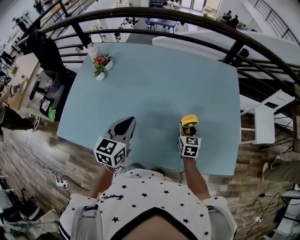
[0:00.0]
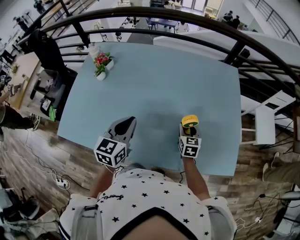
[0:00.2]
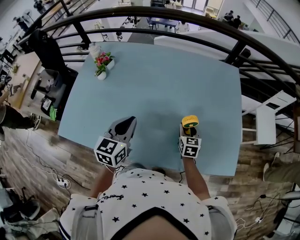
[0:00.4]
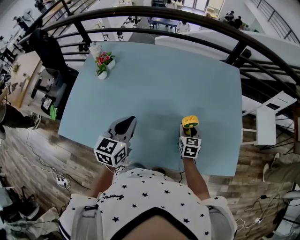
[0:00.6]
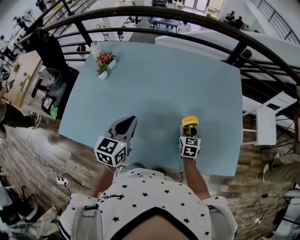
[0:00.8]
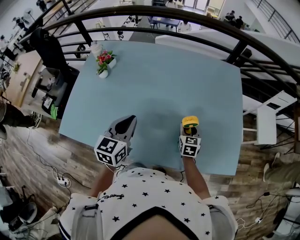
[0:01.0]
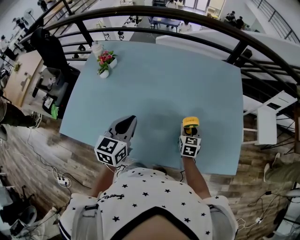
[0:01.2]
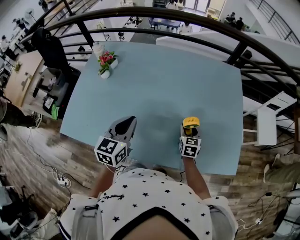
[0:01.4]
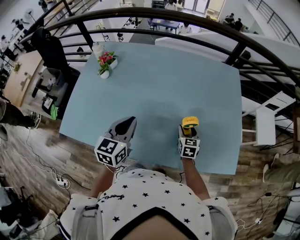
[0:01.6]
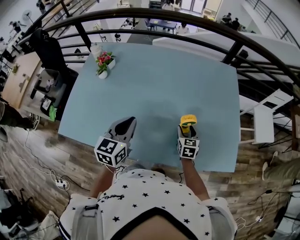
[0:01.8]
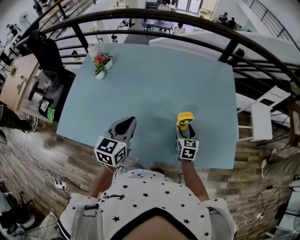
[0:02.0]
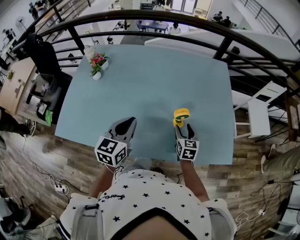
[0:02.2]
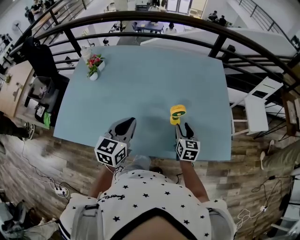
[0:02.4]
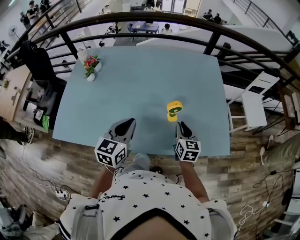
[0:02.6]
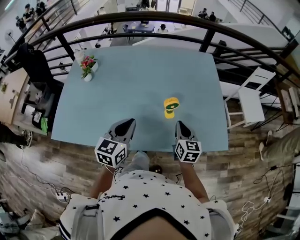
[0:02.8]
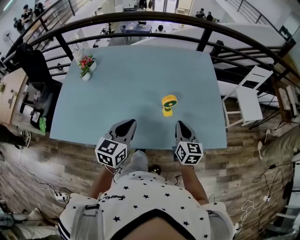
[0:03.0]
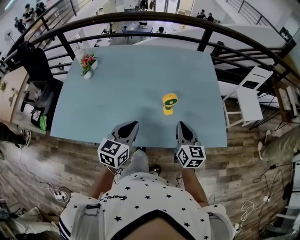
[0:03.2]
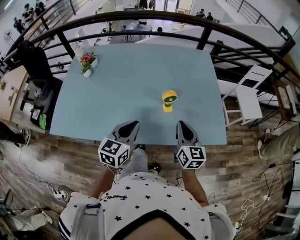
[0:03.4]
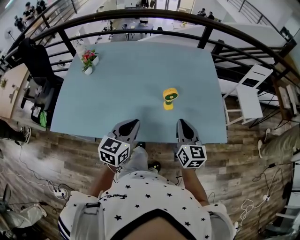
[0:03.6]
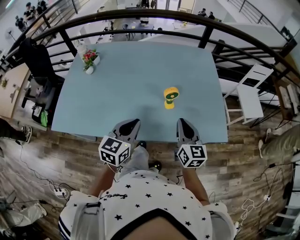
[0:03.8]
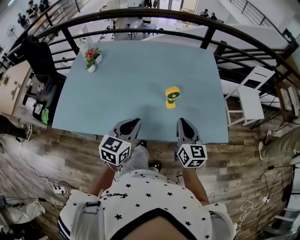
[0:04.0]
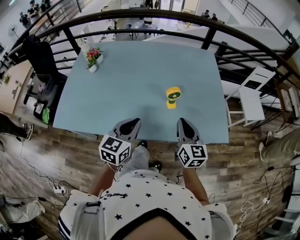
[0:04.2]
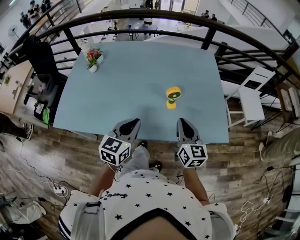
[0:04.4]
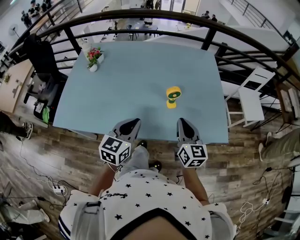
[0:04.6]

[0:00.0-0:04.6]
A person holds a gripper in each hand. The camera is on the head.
0.0 to 1.6 s: The grippers make only small movements.
1.6 to 3.0 s: The left gripper goes some 10 cm to the right and backward, while the right gripper heads upward, backward and to the right, covering some 20 cm, swivels some 20 degrees, and closes.
3.0 to 4.6 s: The right gripper heads backward and upward, covering about 10 cm. The left gripper travels backward by some 5 cm.

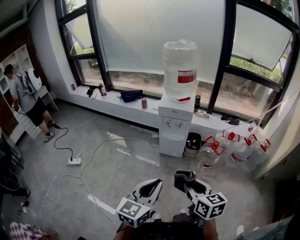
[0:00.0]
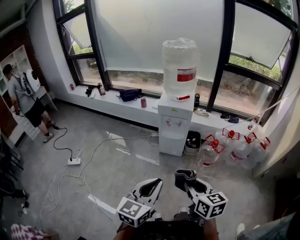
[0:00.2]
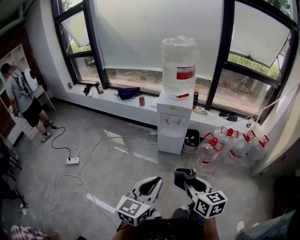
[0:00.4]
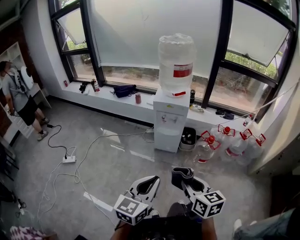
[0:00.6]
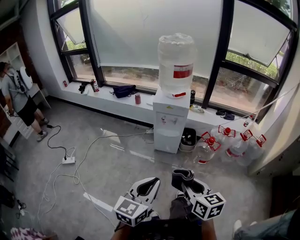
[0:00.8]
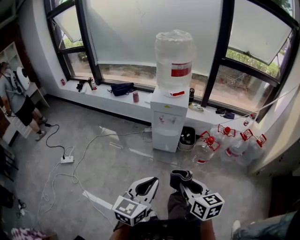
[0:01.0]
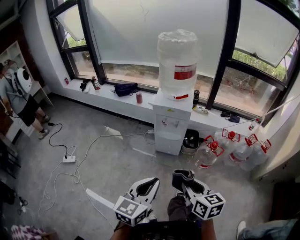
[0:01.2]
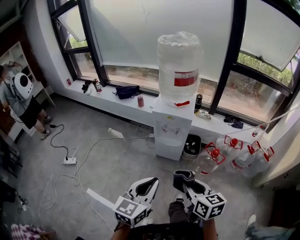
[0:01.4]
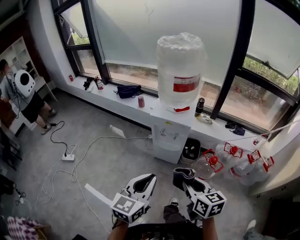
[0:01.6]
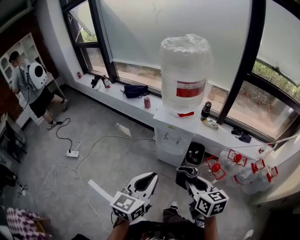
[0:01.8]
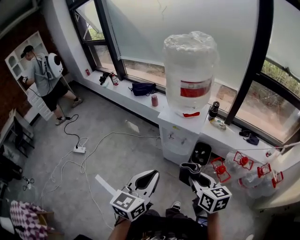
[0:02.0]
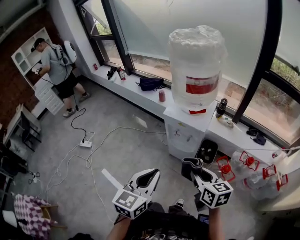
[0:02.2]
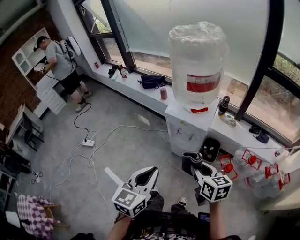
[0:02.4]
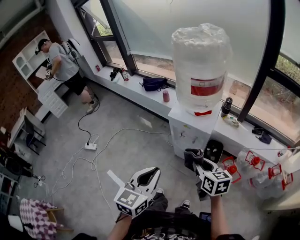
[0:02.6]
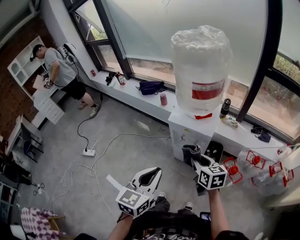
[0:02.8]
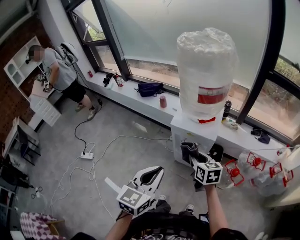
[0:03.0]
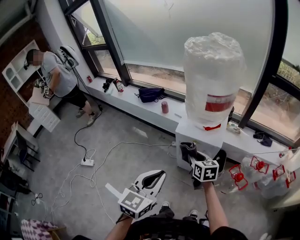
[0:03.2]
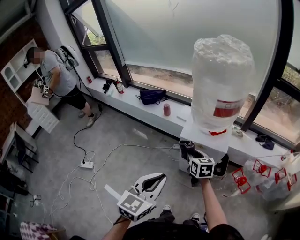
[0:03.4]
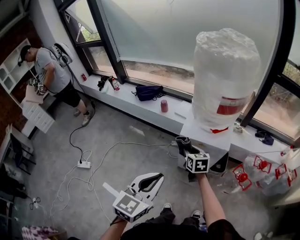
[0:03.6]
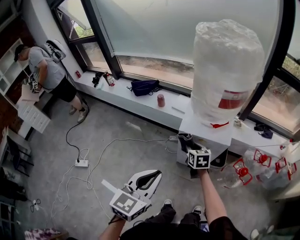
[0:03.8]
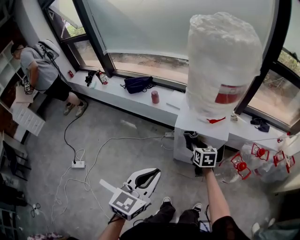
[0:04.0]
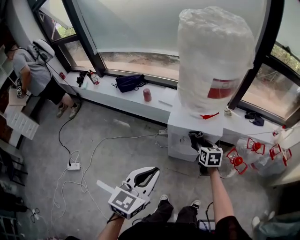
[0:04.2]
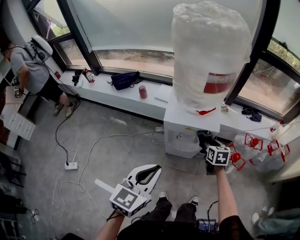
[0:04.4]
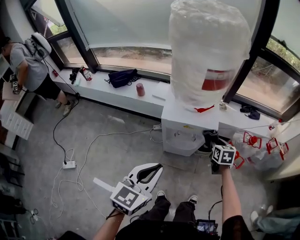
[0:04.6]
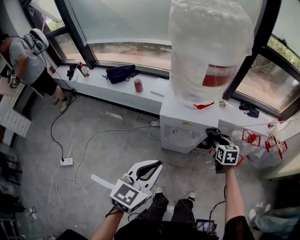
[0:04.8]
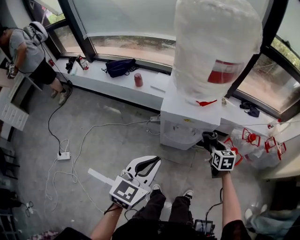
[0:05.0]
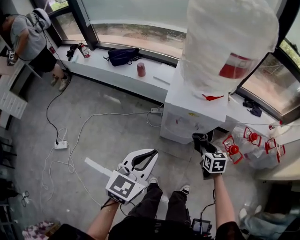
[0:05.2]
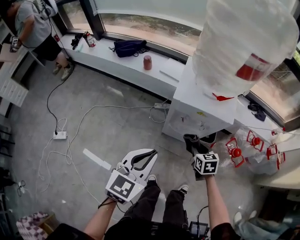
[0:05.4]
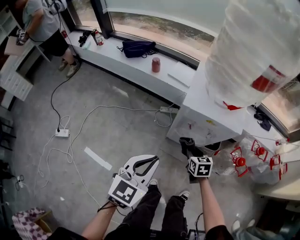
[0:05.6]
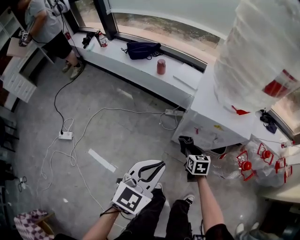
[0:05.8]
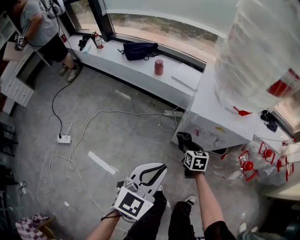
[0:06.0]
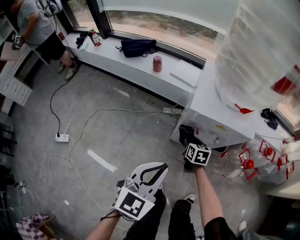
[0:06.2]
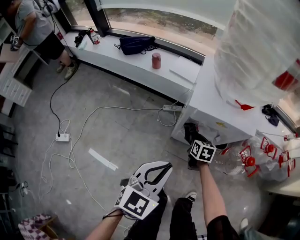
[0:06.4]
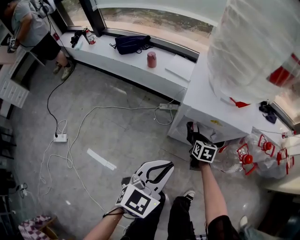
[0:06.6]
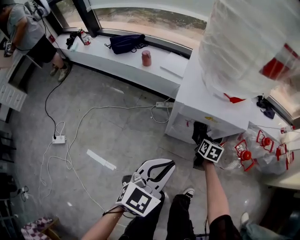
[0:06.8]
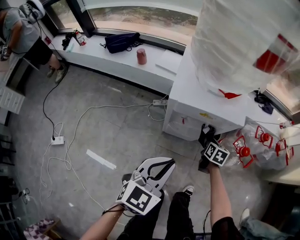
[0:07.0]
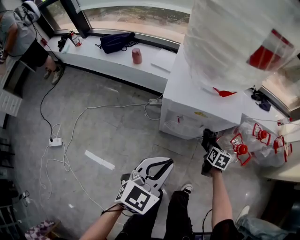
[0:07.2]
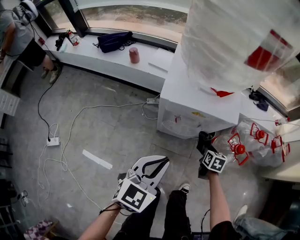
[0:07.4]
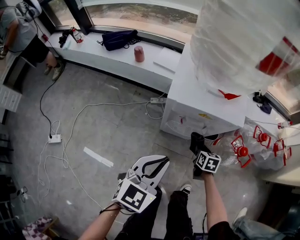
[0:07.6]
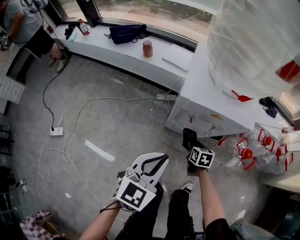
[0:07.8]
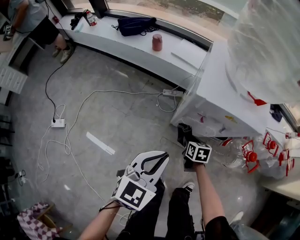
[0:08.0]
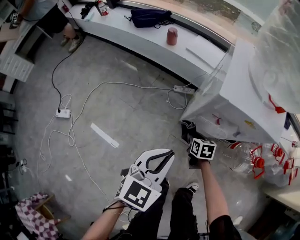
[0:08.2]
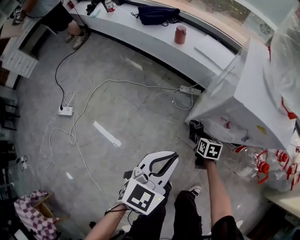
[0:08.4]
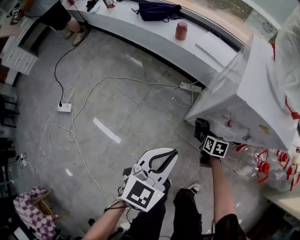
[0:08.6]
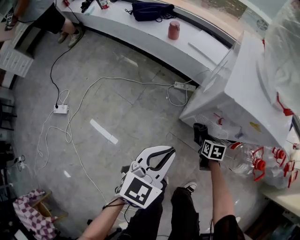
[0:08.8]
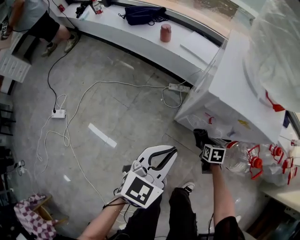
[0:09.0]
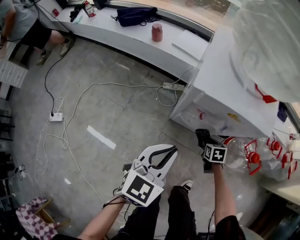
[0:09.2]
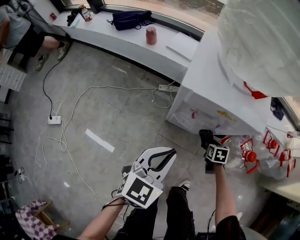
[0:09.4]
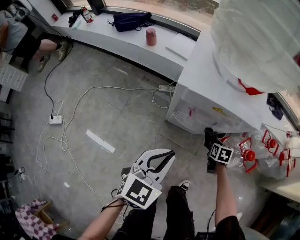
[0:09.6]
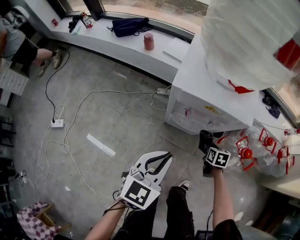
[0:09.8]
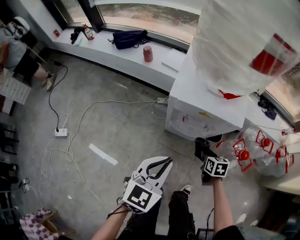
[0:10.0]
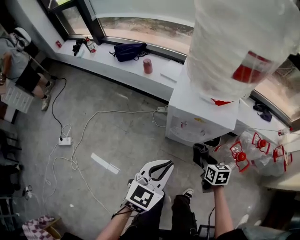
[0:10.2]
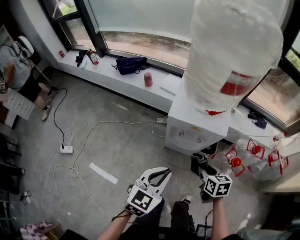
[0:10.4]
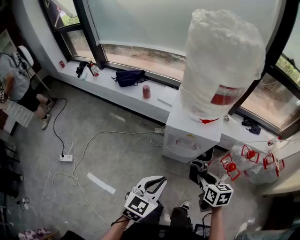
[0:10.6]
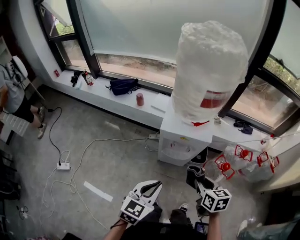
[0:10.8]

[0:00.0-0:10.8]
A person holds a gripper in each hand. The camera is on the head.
0.0 to 1.6 s: Both grippers move forward, approximately 25 cm.
1.6 to 3.0 s: The right gripper shifts roughly 25 cm forward. Meanwhile the left gripper moves forward, approximately 15 cm.
3.0 to 4.6 s: The left gripper ends up roughly 10 cm from where it was, while the right gripper moves roughly 20 cm, and swivels roughly 30 degrees.
4.6 to 6.2 s: The right gripper travels to the left and downward by approximately 30 cm. Meanwhile the left gripper moves downward and to the left, about 15 cm.
6.2 to 7.8 s: The right gripper shifts roughly 10 cm to the right and downward.
7.8 to 9.2 s: The left gripper travels downward by roughly 5 cm, and travels to the left and back again, some 10 cm each way; the right gripper moves downward and to the right, approximately 10 cm.
9.2 to 10.8 s: The left gripper heads upward and backward, covering approximately 25 cm; the right gripper heads upward, covering some 50 cm, and rotates roughly 30 degrees.

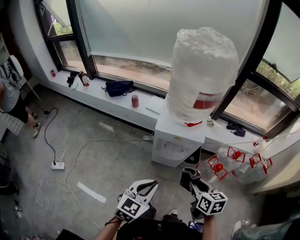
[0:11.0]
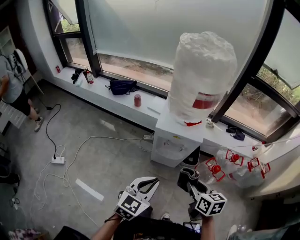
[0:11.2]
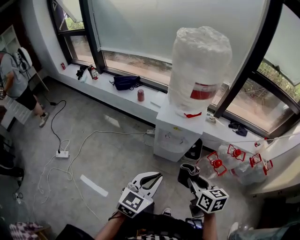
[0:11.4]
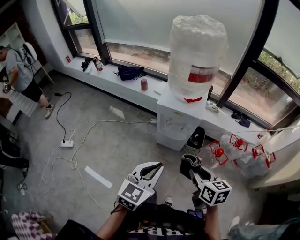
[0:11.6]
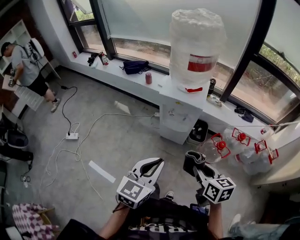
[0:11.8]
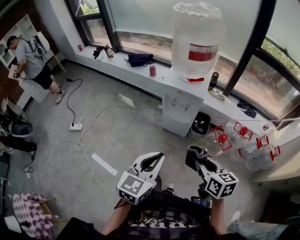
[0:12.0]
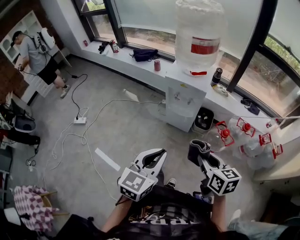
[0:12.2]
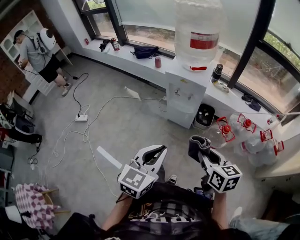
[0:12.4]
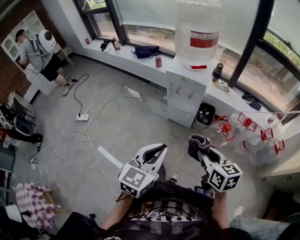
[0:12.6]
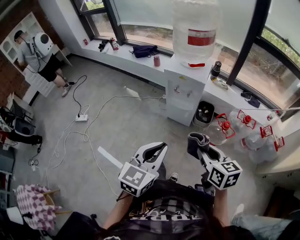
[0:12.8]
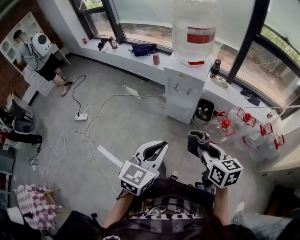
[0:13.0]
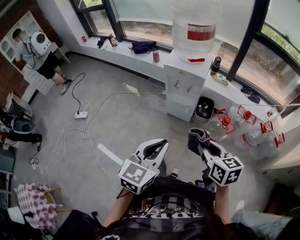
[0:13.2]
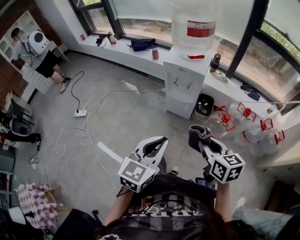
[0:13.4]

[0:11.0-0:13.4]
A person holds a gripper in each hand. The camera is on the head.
11.0 to 12.2 s: The two grippers go roughly 25 cm backward and to the right.
12.2 to 13.4 s: The grippers stay close to where they were, moving slightly.

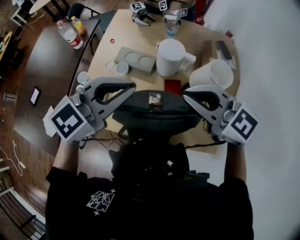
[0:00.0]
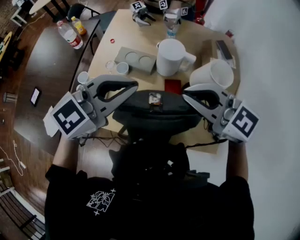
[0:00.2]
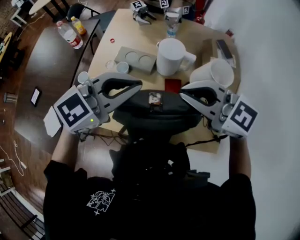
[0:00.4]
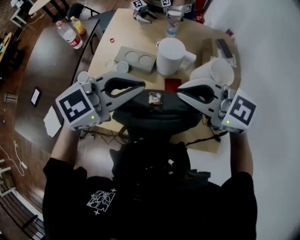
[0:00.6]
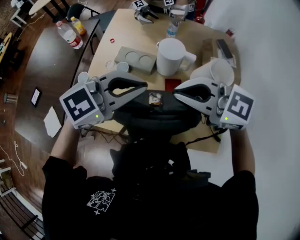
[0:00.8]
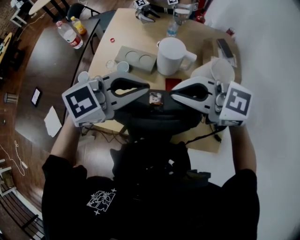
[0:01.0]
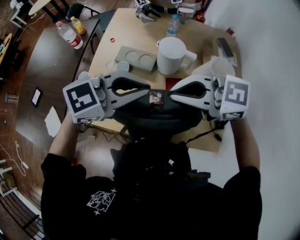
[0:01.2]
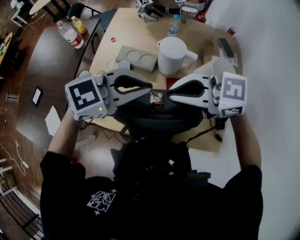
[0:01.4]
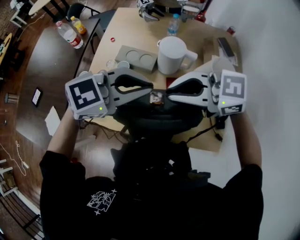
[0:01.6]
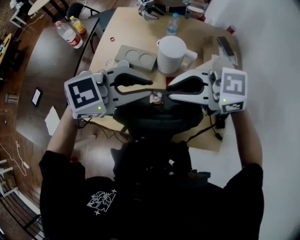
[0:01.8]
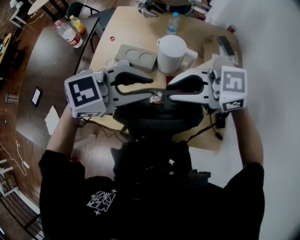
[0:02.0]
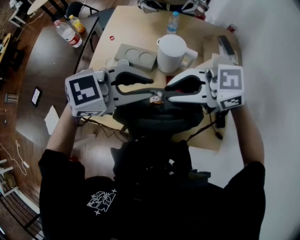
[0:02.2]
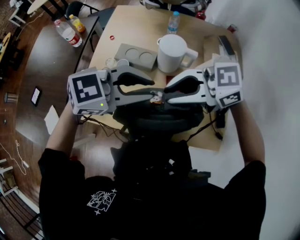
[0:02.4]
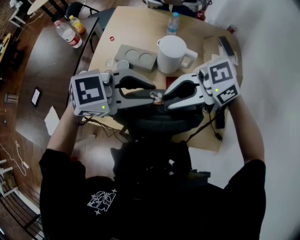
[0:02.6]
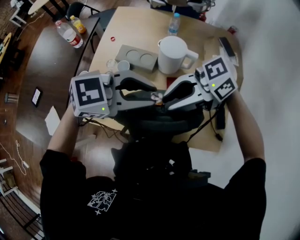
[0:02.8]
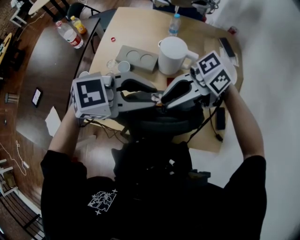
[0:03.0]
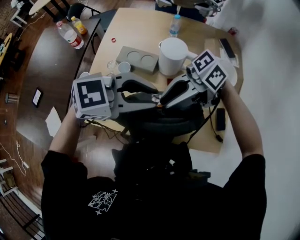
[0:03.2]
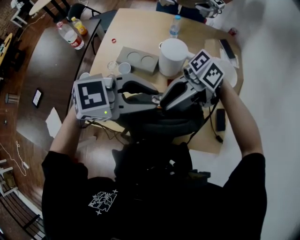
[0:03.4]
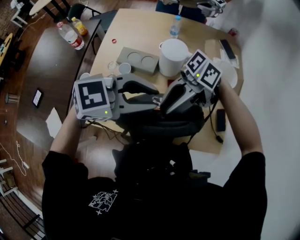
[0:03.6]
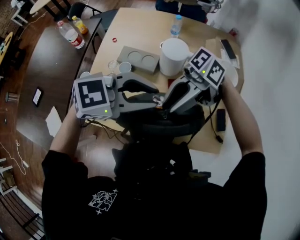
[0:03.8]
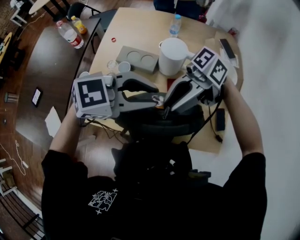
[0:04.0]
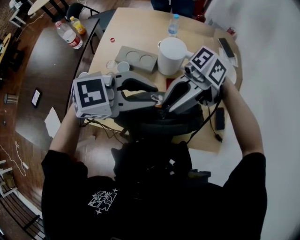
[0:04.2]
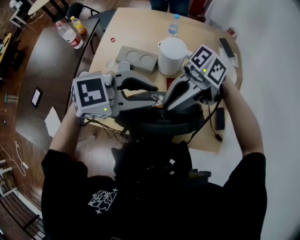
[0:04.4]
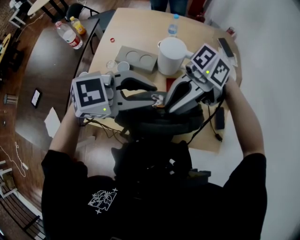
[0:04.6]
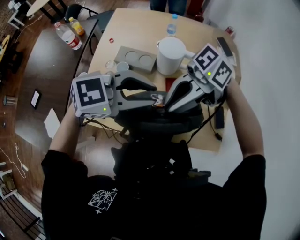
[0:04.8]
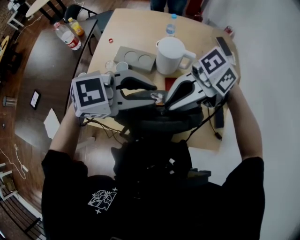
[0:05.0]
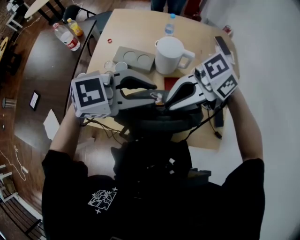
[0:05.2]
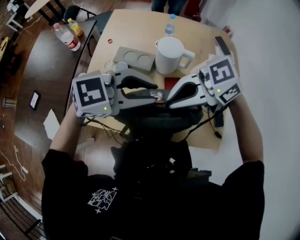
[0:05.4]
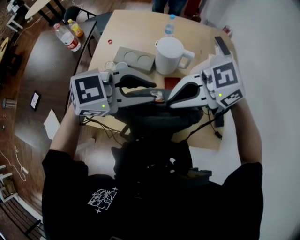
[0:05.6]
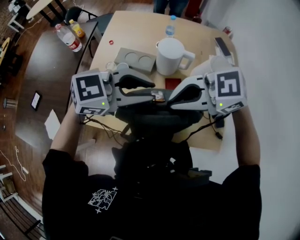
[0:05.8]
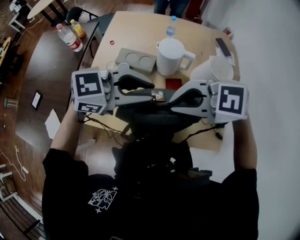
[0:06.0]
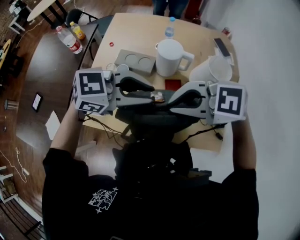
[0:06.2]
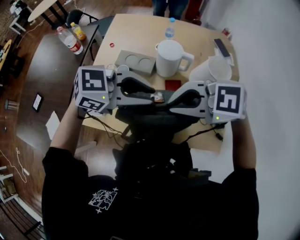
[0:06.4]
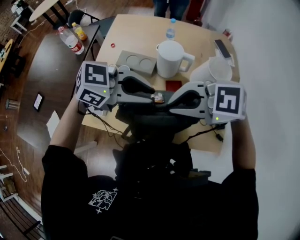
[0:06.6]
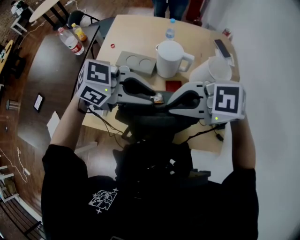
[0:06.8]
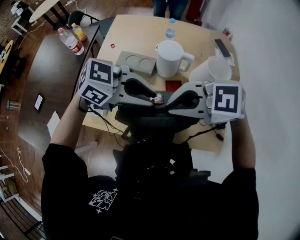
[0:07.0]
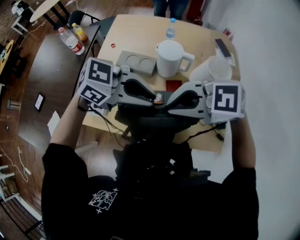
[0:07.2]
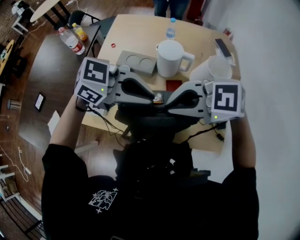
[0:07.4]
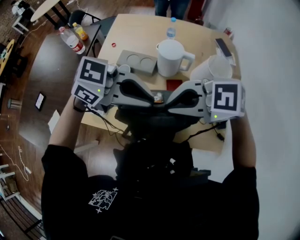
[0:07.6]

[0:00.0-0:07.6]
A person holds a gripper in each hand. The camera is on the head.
0.0 to 1.6 s: The right gripper changes its angle by roughly 30 degrees. Meanwhile the left gripper moves about 5 cm, and swivels some 20 degrees.
1.6 to 3.0 s: The right gripper turns by roughly 30 degrees, and opens; the left gripper opens its fingers.
3.0 to 4.6 s: The right gripper closes its fingers.
4.6 to 6.0 s: The right gripper swivels roughly 50 degrees.
6.0 to 7.6 s: The grippers make only small movements.
